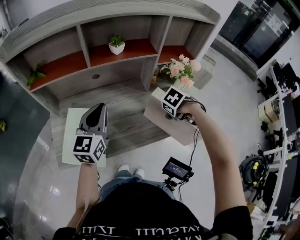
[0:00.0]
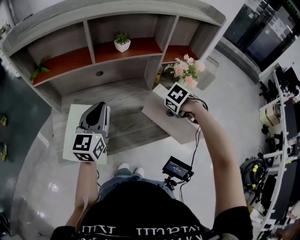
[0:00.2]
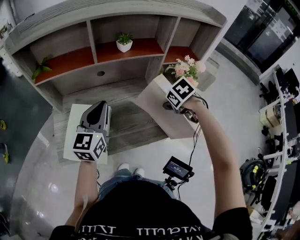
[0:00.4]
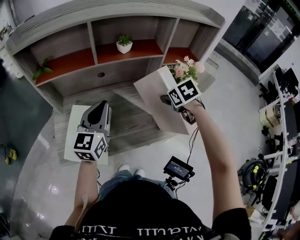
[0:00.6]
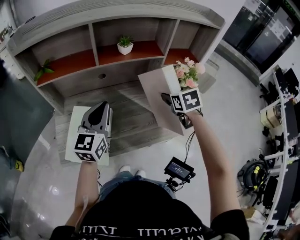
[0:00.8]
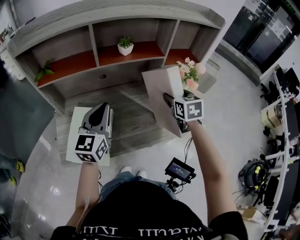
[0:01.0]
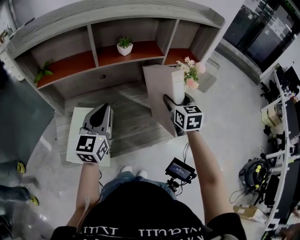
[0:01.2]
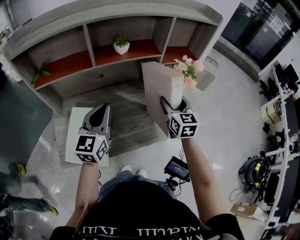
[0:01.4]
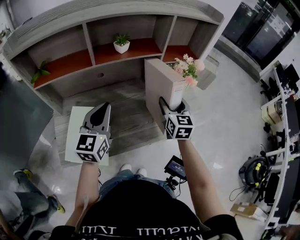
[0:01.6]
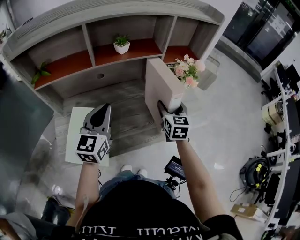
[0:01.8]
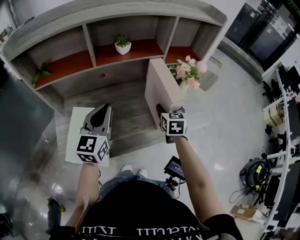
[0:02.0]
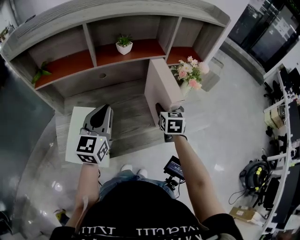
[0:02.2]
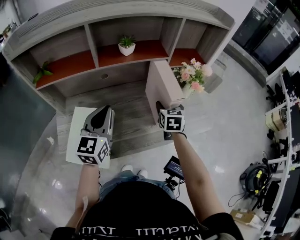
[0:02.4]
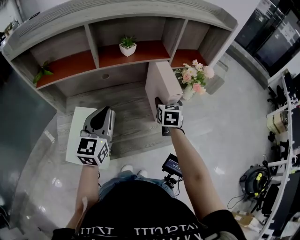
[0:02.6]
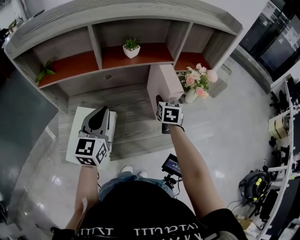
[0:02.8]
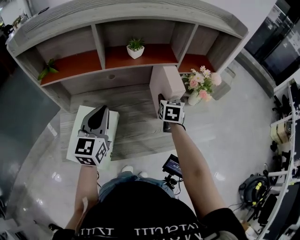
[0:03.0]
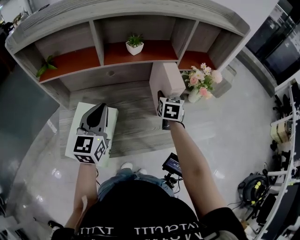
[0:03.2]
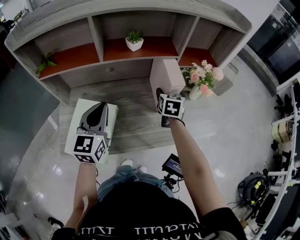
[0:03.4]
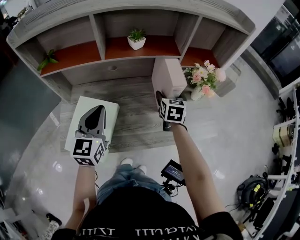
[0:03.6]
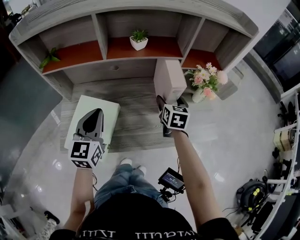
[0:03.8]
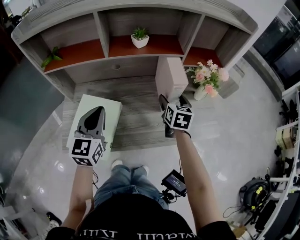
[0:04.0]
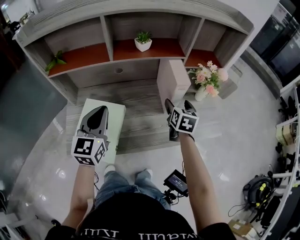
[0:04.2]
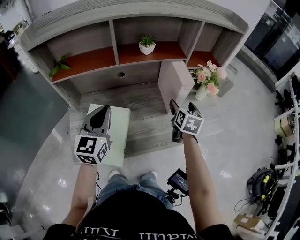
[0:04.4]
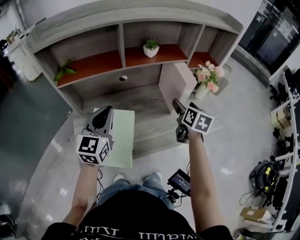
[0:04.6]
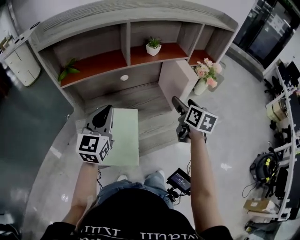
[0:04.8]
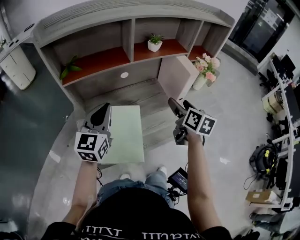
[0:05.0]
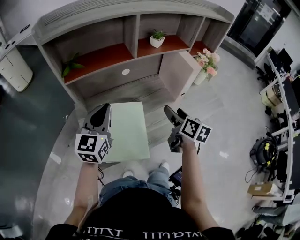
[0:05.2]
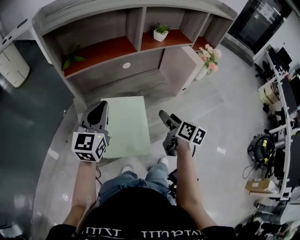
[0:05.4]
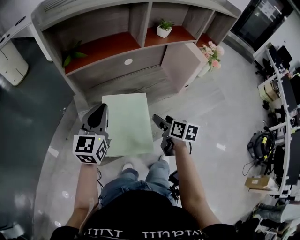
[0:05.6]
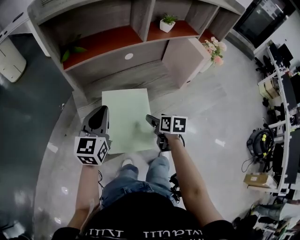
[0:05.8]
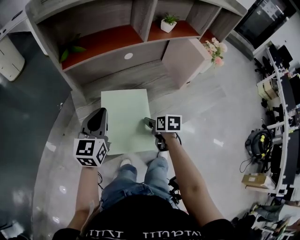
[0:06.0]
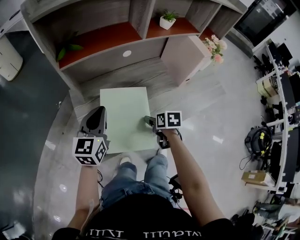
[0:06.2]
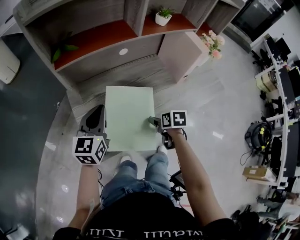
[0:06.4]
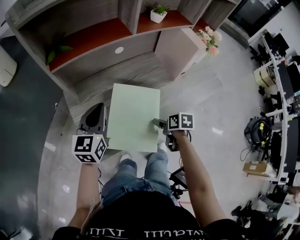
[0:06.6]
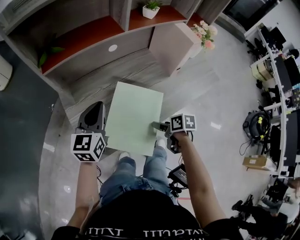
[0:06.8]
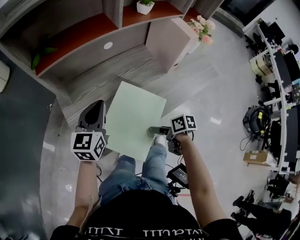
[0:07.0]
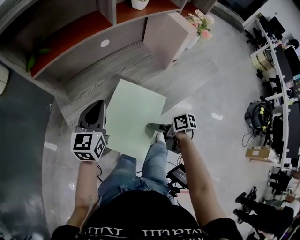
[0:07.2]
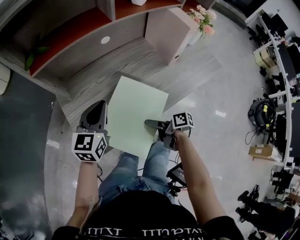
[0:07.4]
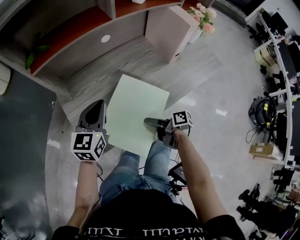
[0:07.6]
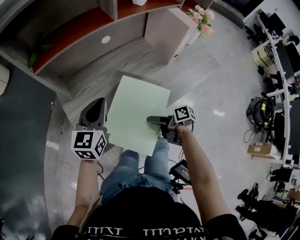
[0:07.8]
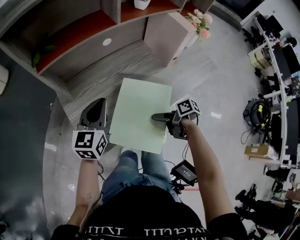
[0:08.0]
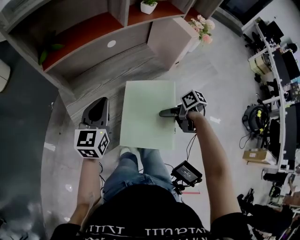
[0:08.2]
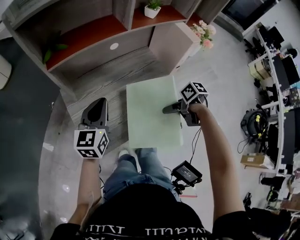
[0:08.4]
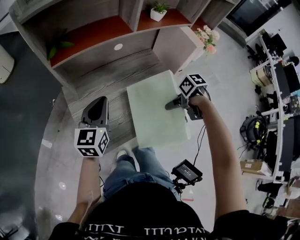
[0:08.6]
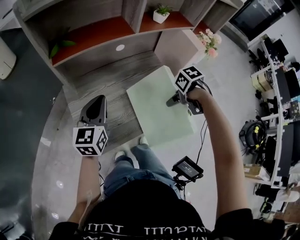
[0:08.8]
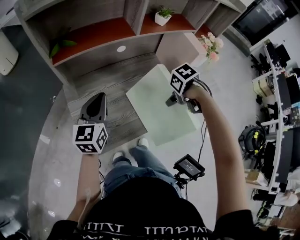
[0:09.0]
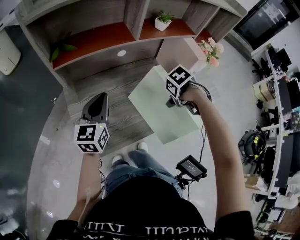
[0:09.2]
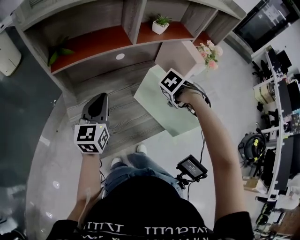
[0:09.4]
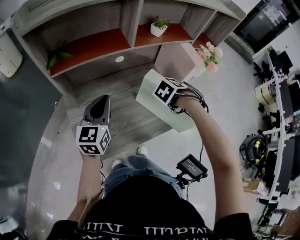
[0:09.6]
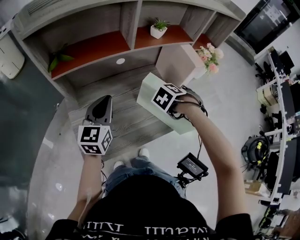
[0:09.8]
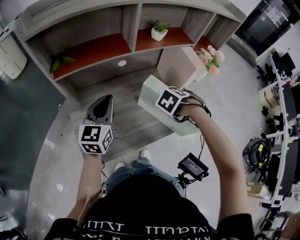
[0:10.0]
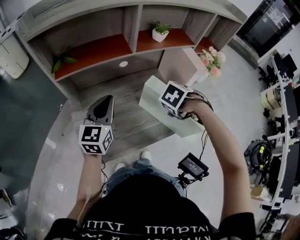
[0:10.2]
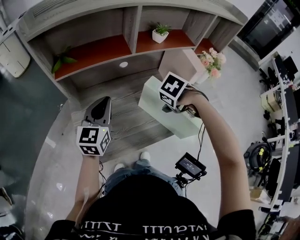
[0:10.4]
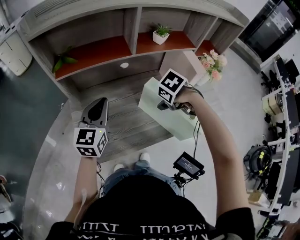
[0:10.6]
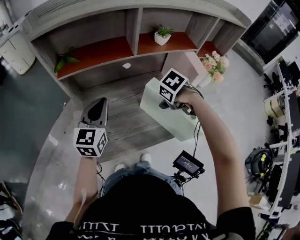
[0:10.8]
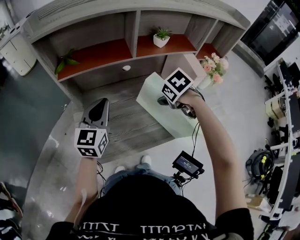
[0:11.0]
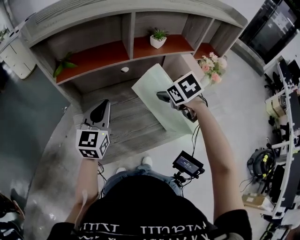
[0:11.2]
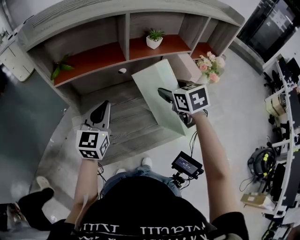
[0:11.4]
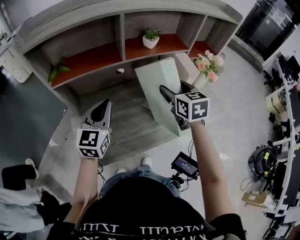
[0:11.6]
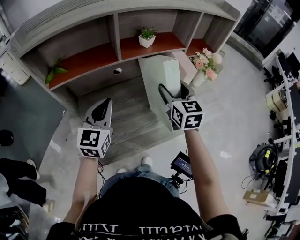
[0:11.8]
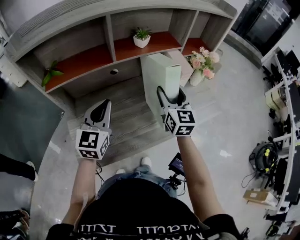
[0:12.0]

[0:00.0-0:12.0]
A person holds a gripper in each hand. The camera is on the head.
0:00.0 to 0:01.6: The right gripper travels upward by some 10 cm, and points its fingers about 70 degrees further upward.
0:01.6 to 0:03.0: The right gripper heads forward and downward, covering approximately 15 cm.
0:03.0 to 0:04.4: The left gripper ends up about 5 cm from where it was. The right gripper is displaced backward by roughly 10 cm.
0:04.4 to 0:06.0: The right gripper heads to the left, downward and backward, covering approximately 35 cm, and changes its angle by approximately 30 degrees. The left gripper heads to the left and downward, covering roughly 20 cm.
0:06.0 to 0:07.6: The left gripper shifts some 5 cm to the right, while the right gripper travels backward by roughly 10 cm, and points its fingers some 30 degrees further upward.
0:07.6 to 0:09.0: The left gripper travels upward by approximately 5 cm. Meanwhile the right gripper changes place by roughly 20 cm, and points its fingers approximately 60 degrees further downward.
0:09.0 to 0:10.4: The right gripper moves some 10 cm, and rotates roughly 30 degrees, while the left gripper changes place by about 5 cm.
0:10.4 to 0:12.0: The right gripper moves upward, about 10 cm, and points its fingers roughly 80 degrees further upward. Meanwhile the left gripper shifts by some 5 cm.

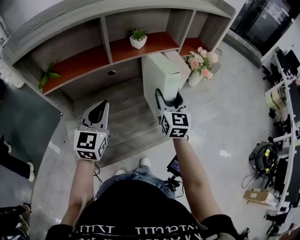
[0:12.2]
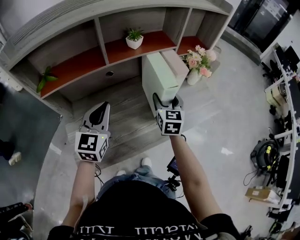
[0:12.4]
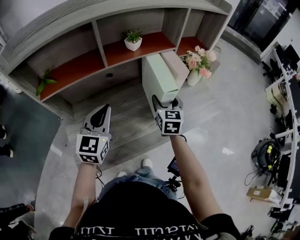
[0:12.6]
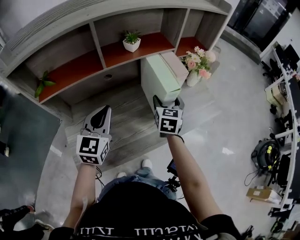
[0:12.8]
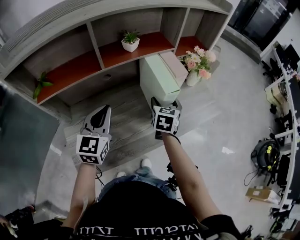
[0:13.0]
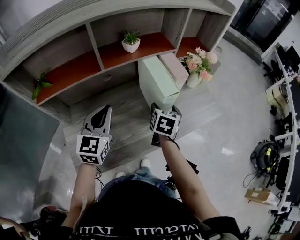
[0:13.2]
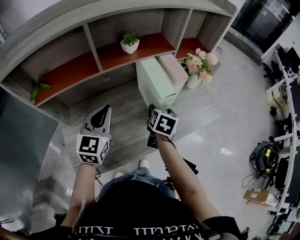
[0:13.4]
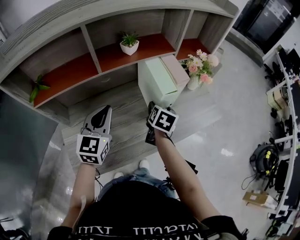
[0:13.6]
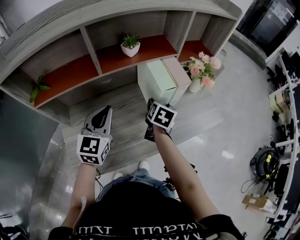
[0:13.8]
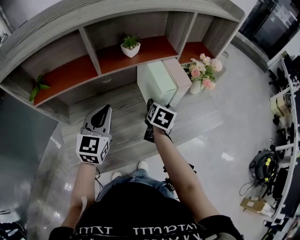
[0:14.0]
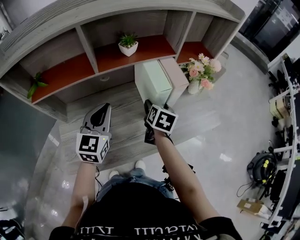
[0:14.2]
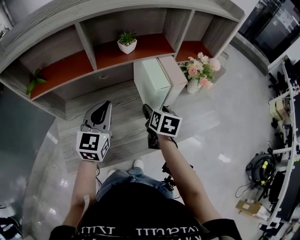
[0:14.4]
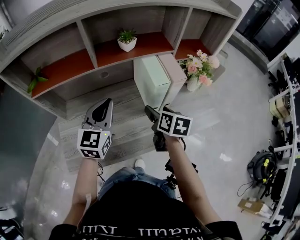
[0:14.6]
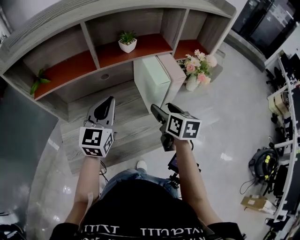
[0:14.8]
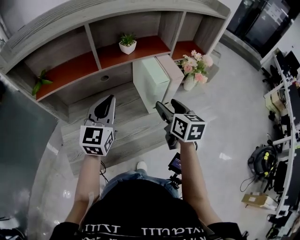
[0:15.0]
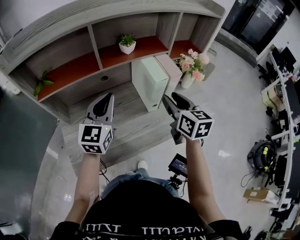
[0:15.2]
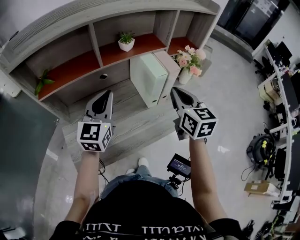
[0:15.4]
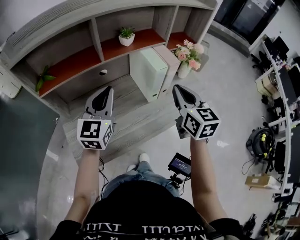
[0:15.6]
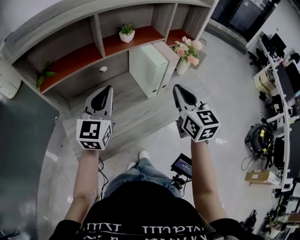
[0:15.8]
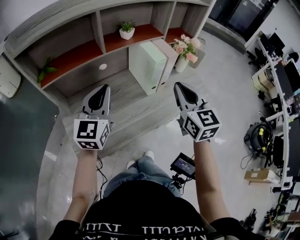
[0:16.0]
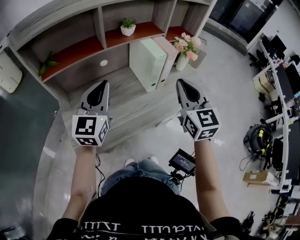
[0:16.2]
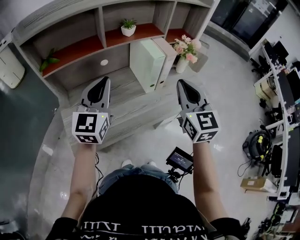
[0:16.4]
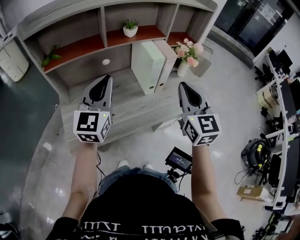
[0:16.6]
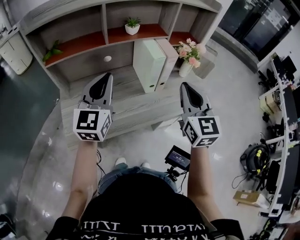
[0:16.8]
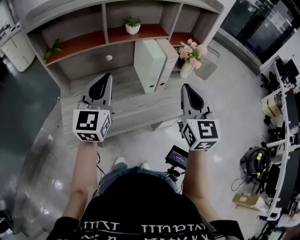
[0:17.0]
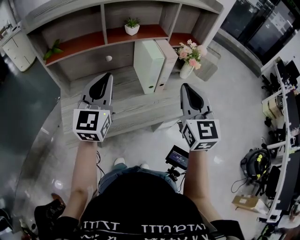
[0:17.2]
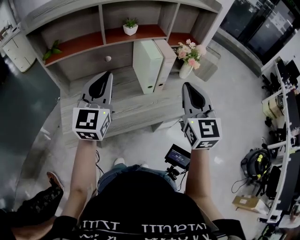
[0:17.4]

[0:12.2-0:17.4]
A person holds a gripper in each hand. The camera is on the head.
0:12.2 to 0:14.0: The left gripper travels forward by about 5 cm, while the right gripper moves downward and forward, about 15 cm, and angles its fingers downward, by some 40 degrees.
0:14.0 to 0:15.6: The right gripper goes about 25 cm upward and backward, turns by some 40 degrees, and closes. Meanwhile the left gripper is displaced upward by approximately 5 cm.
0:15.6 to 0:17.4: The right gripper shifts roughly 10 cm backward and to the right, and swivels approximately 20 degrees. Meanwhile the left gripper goes about 5 cm backward.

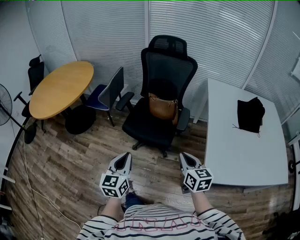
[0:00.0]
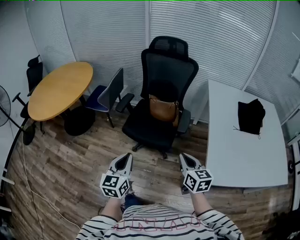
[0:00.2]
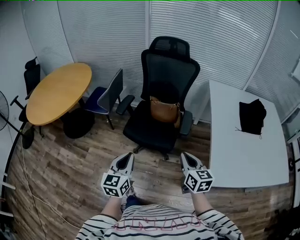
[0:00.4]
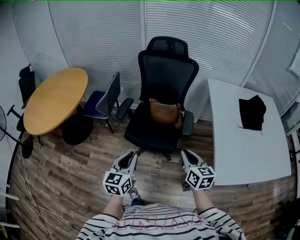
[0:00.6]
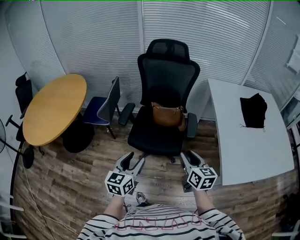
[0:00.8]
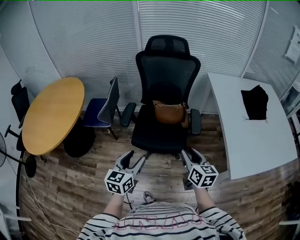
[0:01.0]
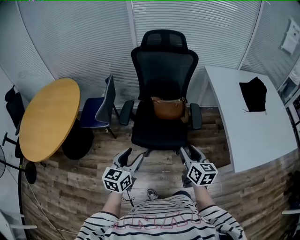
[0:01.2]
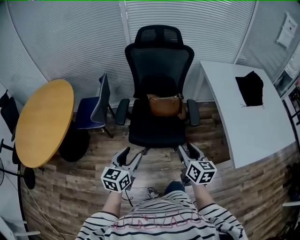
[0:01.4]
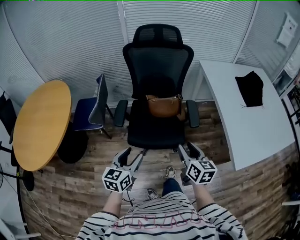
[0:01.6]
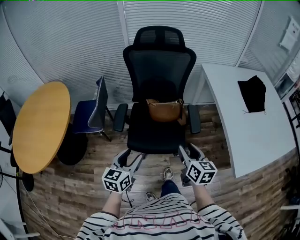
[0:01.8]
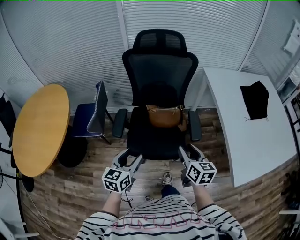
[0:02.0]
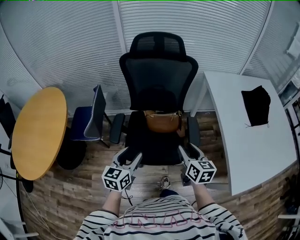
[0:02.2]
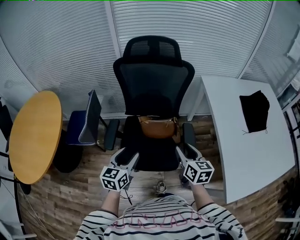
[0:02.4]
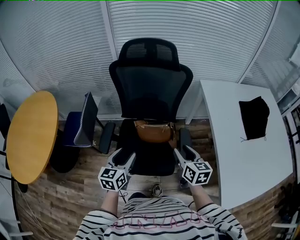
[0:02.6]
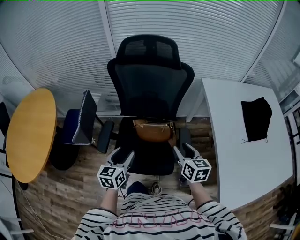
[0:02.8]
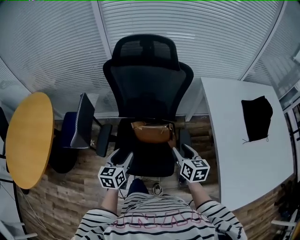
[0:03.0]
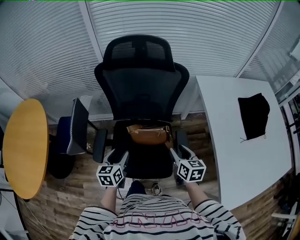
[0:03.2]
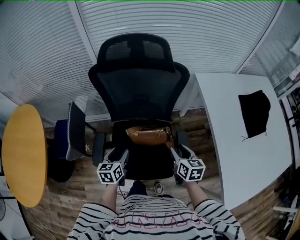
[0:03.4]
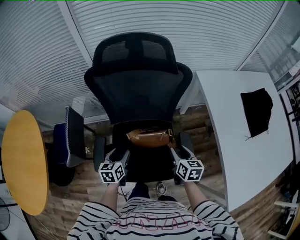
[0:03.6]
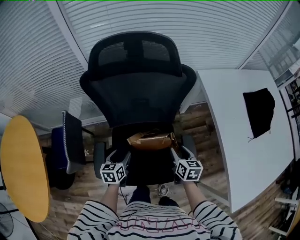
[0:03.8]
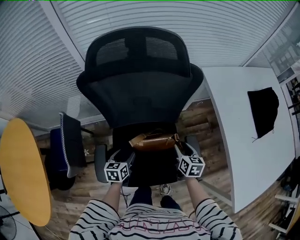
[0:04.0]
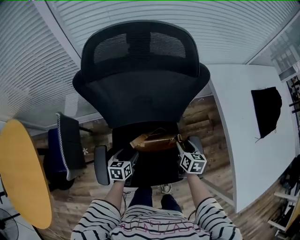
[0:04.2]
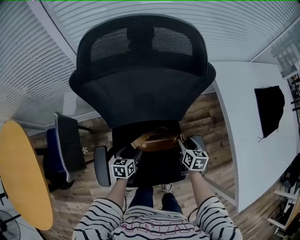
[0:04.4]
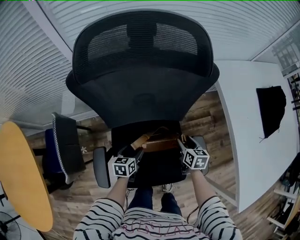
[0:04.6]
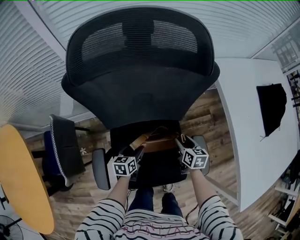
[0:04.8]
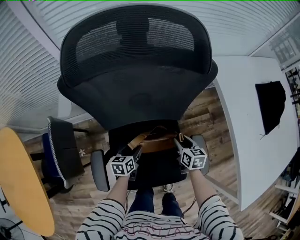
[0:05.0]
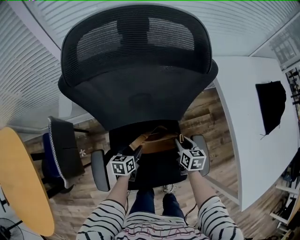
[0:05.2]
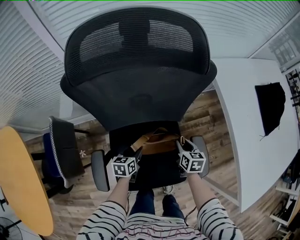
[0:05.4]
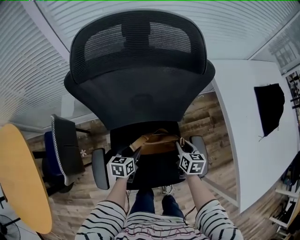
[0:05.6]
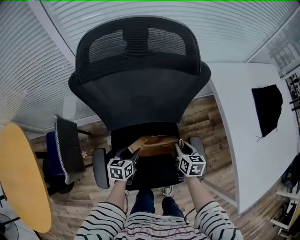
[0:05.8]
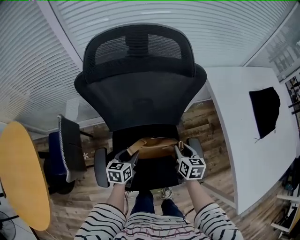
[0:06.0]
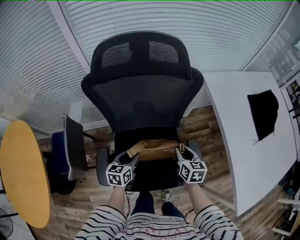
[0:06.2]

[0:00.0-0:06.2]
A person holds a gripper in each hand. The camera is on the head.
0:00.0 to 0:01.6: The right gripper moves roughly 25 cm, rotates approximately 20 degrees, and opens up. The left gripper ends up about 25 cm from where it was, rotates some 30 degrees, and opens up.
0:01.6 to 0:03.2: The two grippers go about 30 cm forward.
0:03.2 to 0:04.6: The two grippers go about 25 cm downward and forward. The left gripper turns by some 20 degrees.
0:04.6 to 0:06.2: The left gripper is displaced upward by approximately 15 cm, while the right gripper moves upward and backward, roughly 15 cm, and closes.
